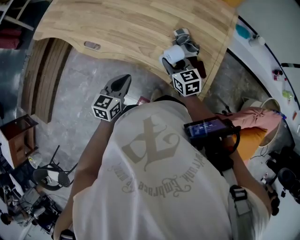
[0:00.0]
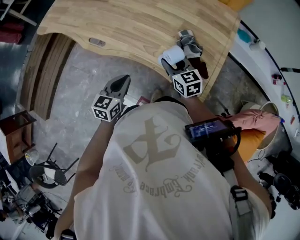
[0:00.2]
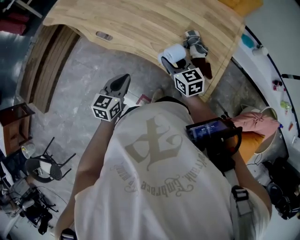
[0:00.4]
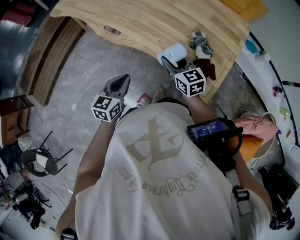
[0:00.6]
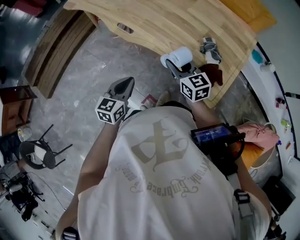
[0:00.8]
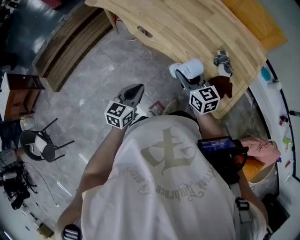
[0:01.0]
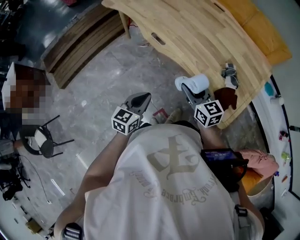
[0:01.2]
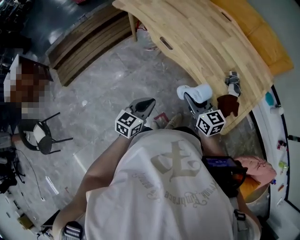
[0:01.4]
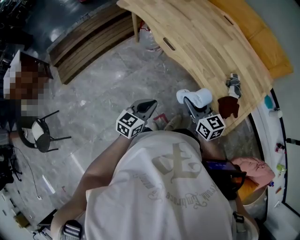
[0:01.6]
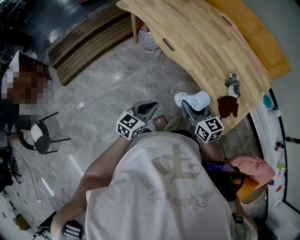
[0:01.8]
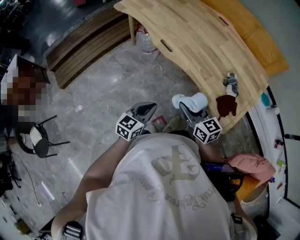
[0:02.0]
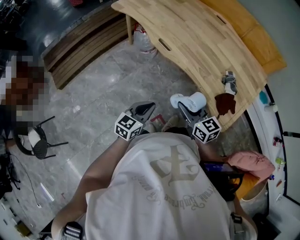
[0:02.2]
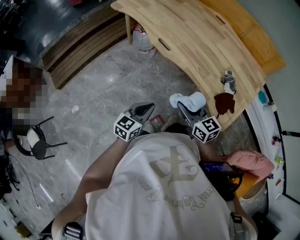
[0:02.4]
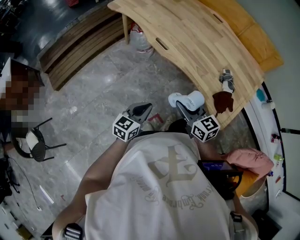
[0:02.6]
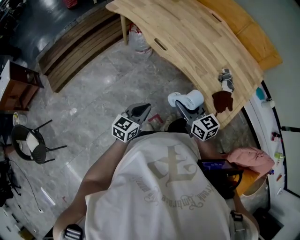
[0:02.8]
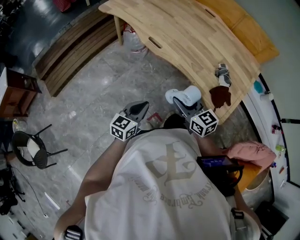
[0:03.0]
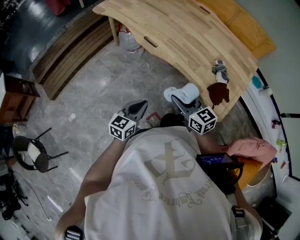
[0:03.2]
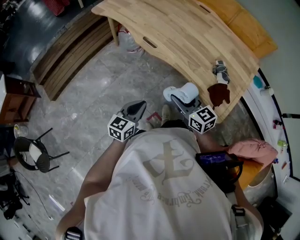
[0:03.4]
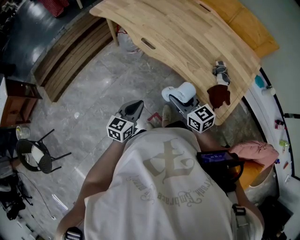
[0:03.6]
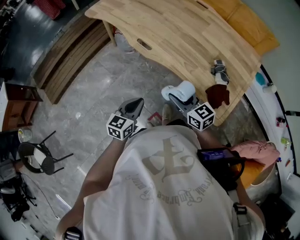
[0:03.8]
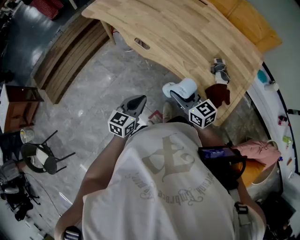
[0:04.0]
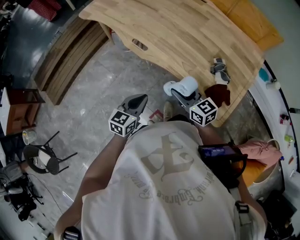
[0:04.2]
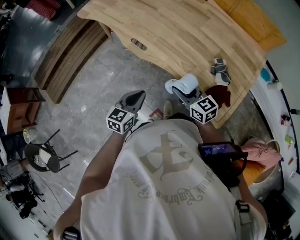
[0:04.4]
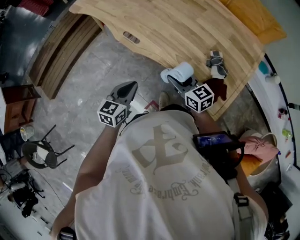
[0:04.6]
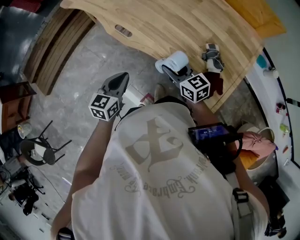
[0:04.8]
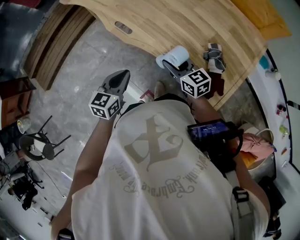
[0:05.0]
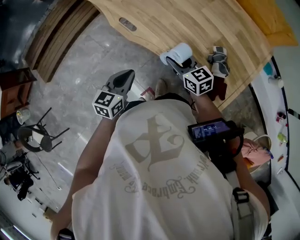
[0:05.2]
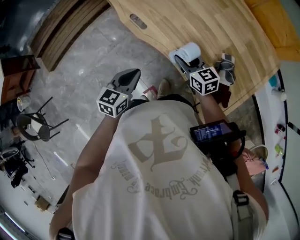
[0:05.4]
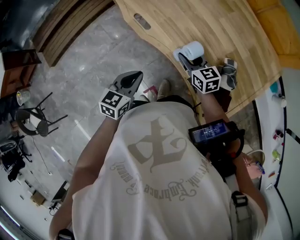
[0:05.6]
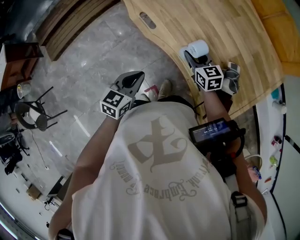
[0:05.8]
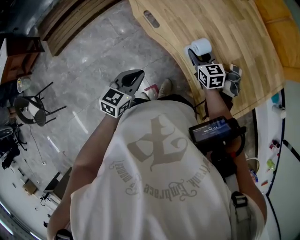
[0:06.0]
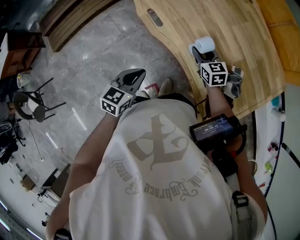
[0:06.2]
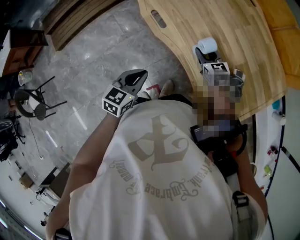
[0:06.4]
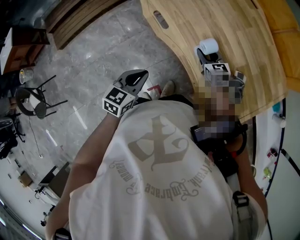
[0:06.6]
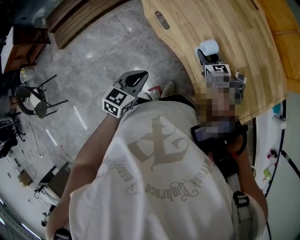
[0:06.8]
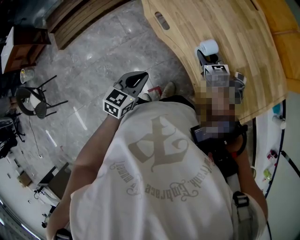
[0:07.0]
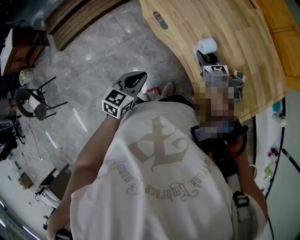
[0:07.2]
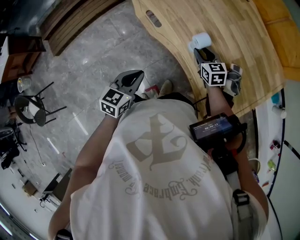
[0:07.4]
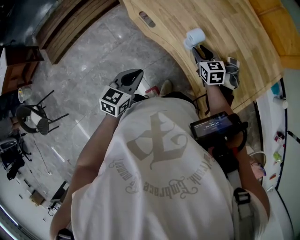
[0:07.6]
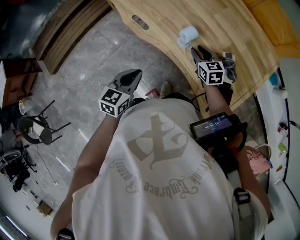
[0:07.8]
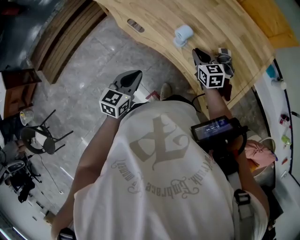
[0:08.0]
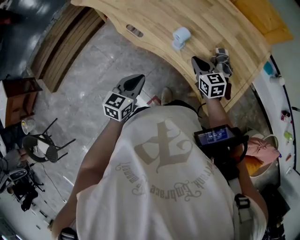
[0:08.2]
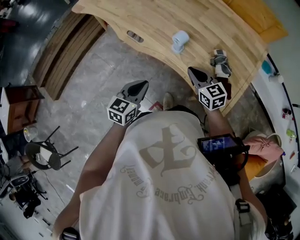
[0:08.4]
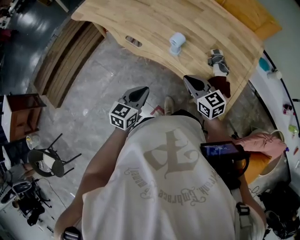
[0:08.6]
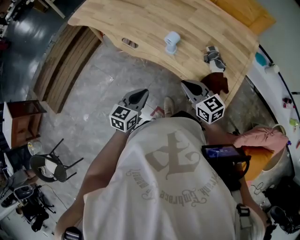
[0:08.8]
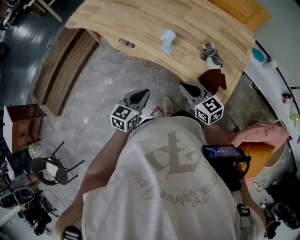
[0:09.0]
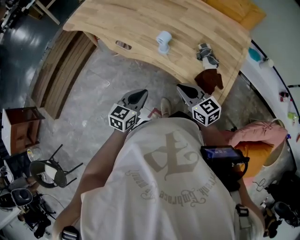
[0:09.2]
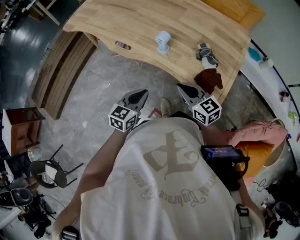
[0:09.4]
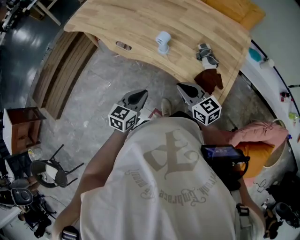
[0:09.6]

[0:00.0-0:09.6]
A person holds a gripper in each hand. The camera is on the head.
0:00.0 to 0:01.6: The right gripper goes roughly 30 cm to the left, backward and upward, and rotates about 30 degrees, while the left gripper moves to the left and backward, approximately 25 cm.
0:01.6 to 0:03.2: The grippers move only a little.
0:03.2 to 0:04.8: The right gripper travels forward, to the right and downward by some 20 cm. Meanwhile the left gripper moves forward and to the right, some 15 cm.
0:04.8 to 0:06.4: The right gripper travels forward and downward by about 15 cm.
0:06.4 to 0:08.0: The right gripper shifts about 10 cm backward and to the right, and closes its fingers.
0:08.0 to 0:09.6: The right gripper goes approximately 25 cm backward and upward. Meanwhile the left gripper is displaced backward and to the right by about 10 cm.

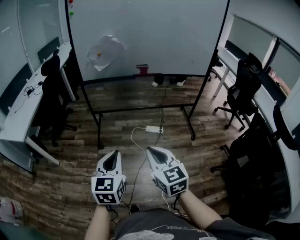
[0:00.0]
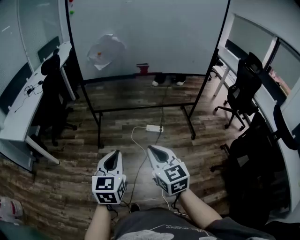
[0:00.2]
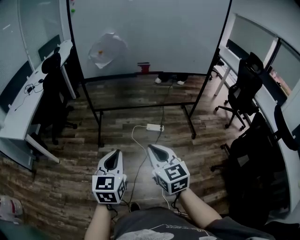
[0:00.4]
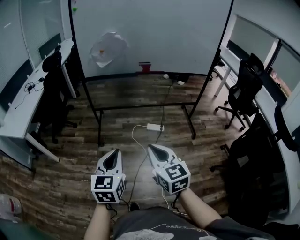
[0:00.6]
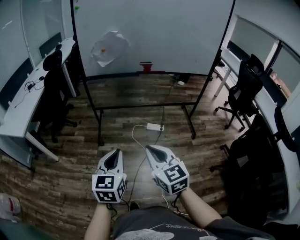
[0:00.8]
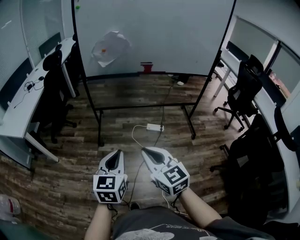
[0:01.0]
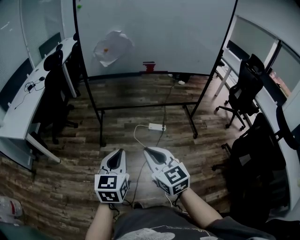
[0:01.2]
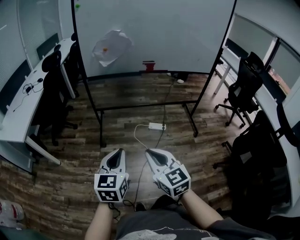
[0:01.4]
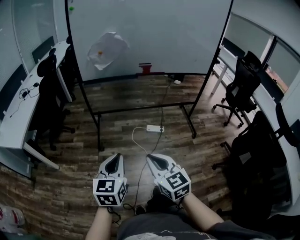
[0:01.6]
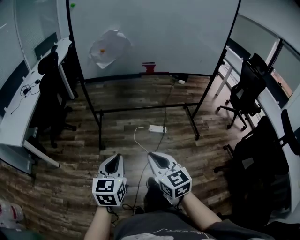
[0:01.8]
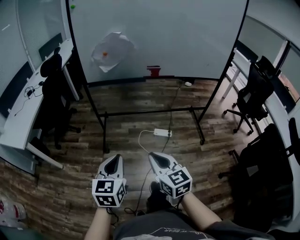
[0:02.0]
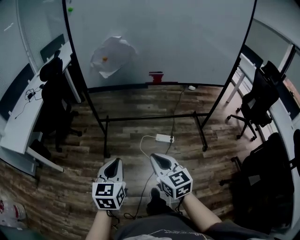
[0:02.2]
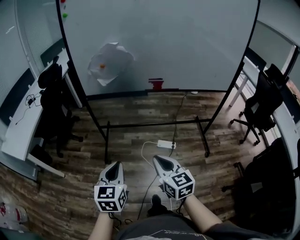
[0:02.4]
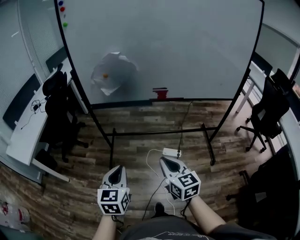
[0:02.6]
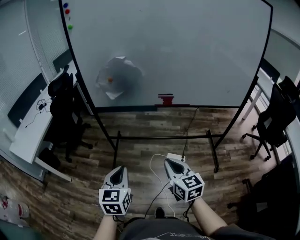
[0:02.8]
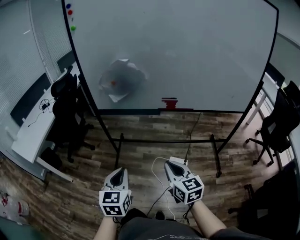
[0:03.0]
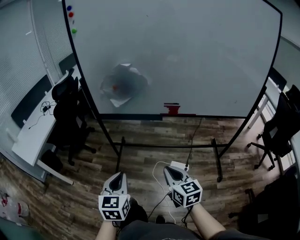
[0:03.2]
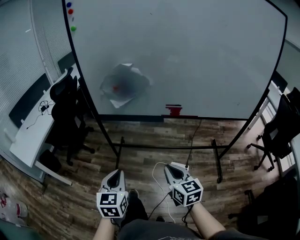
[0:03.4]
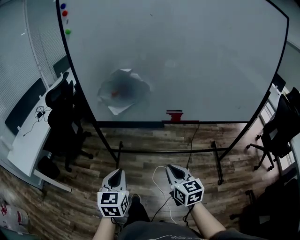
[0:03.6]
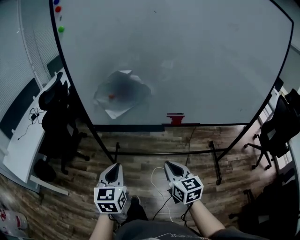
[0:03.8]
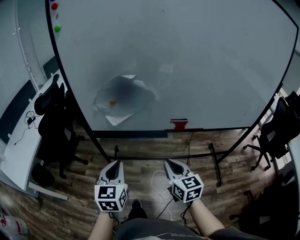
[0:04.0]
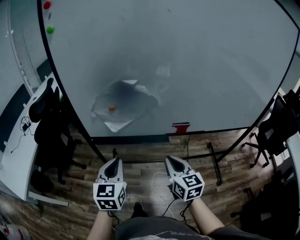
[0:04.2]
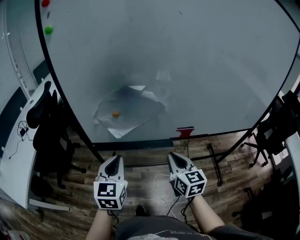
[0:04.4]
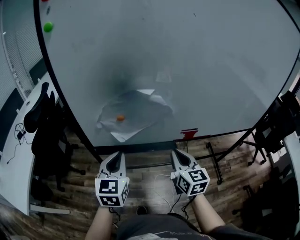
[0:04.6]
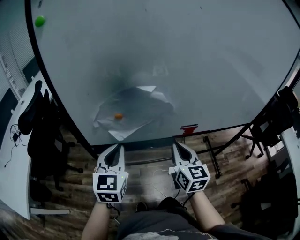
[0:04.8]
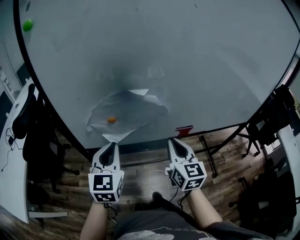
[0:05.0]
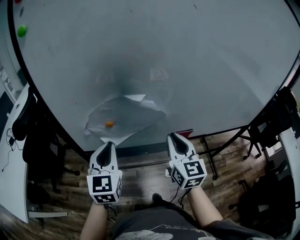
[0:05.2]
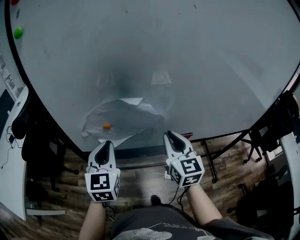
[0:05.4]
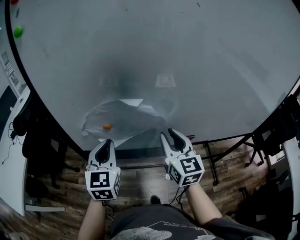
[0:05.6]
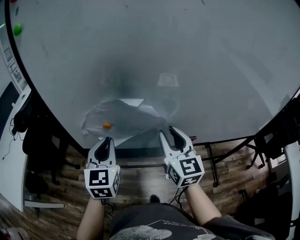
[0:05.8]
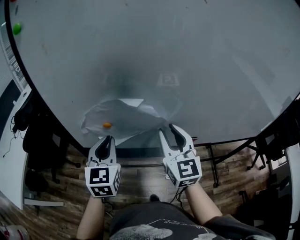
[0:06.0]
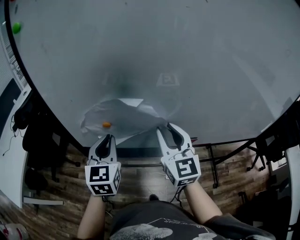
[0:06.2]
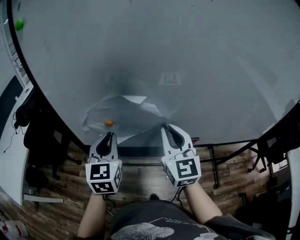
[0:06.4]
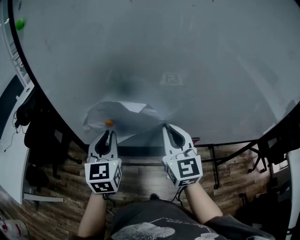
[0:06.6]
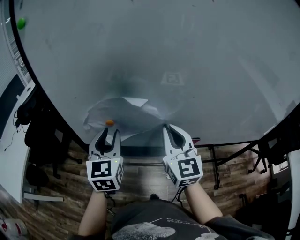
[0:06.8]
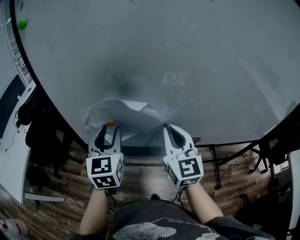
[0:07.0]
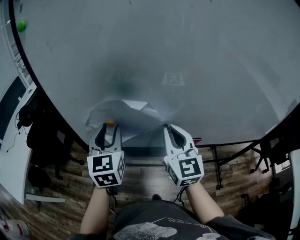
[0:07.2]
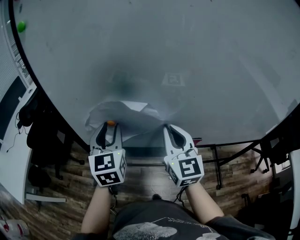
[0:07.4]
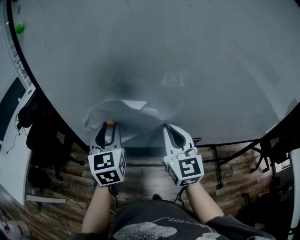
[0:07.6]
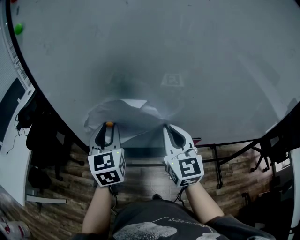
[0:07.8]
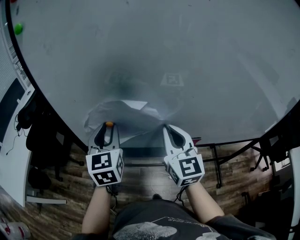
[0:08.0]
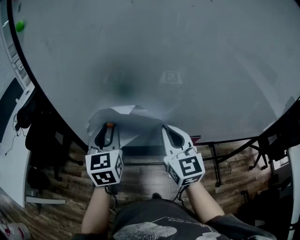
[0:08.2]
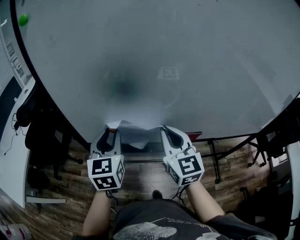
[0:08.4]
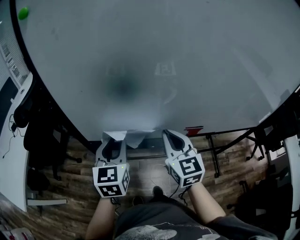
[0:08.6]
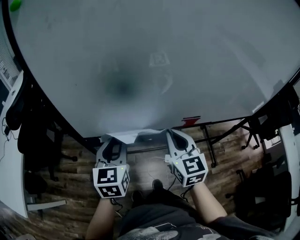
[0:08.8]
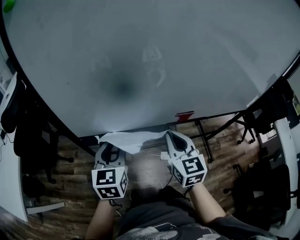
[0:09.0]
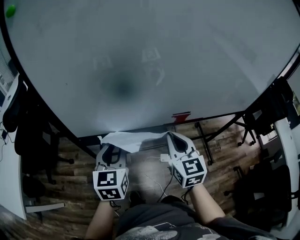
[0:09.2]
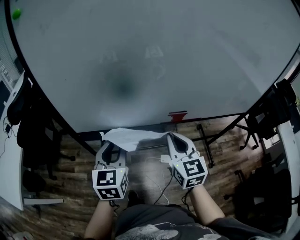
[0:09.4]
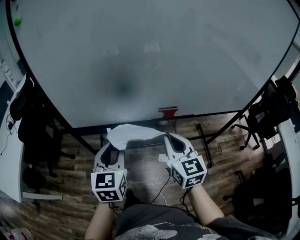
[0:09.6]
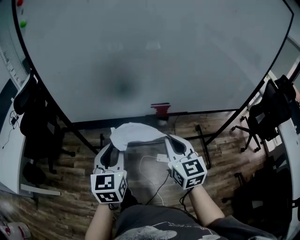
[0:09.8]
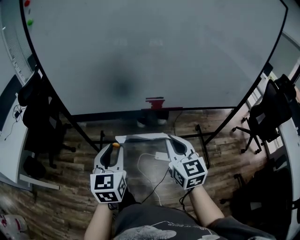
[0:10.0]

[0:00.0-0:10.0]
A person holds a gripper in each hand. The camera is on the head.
0:00.0 to 0:01.4: The left gripper is displaced to the left by approximately 5 cm, while the right gripper moves to the left, about 10 cm.
0:01.4 to 0:02.8: The right gripper heads forward and to the right, covering approximately 30 cm. The left gripper travels forward by approximately 25 cm.
0:02.8 to 0:04.2: The two grippers go approximately 30 cm forward.
0:04.2 to 0:05.8: The right gripper travels forward and upward by approximately 20 cm, and opens, while the left gripper shifts some 15 cm forward.
0:05.8 to 0:07.2: The left gripper opens its fingers. The right gripper closes its fingers.
0:07.2 to 0:08.6: The two grippers go some 5 cm downward.
0:08.6 to 0:10.0: Both grippers move backward and to the right, about 30 cm.

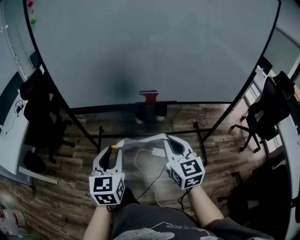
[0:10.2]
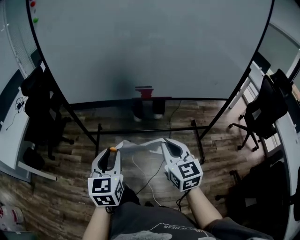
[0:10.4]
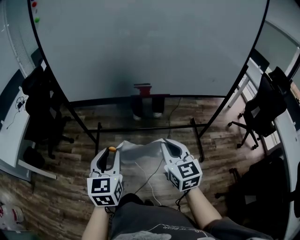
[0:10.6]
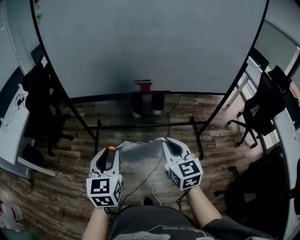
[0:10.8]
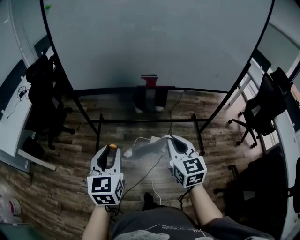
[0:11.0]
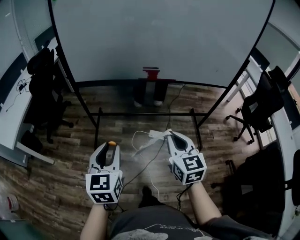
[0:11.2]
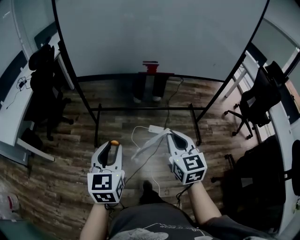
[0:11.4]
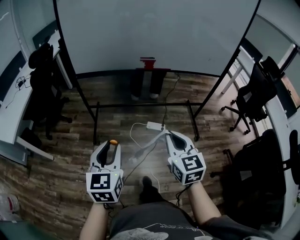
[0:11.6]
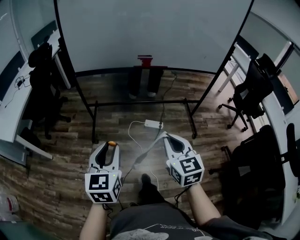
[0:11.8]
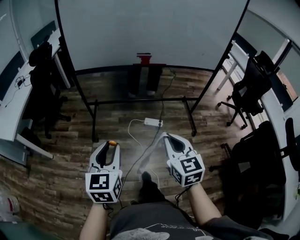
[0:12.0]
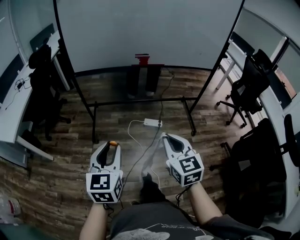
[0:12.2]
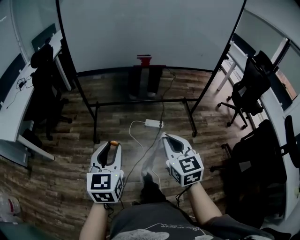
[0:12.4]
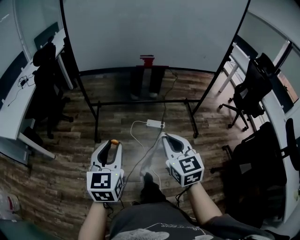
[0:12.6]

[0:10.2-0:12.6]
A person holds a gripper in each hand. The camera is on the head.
0:10.2 to 0:11.4: The two grippers go roughly 20 cm backward.
0:11.4 to 0:12.6: The grippers both shift backward by approximately 10 cm.

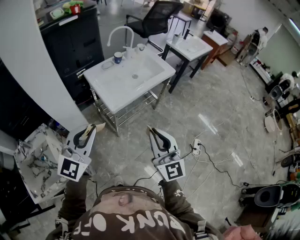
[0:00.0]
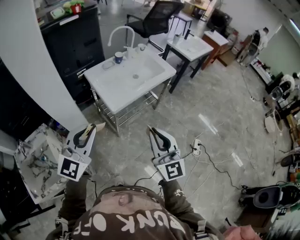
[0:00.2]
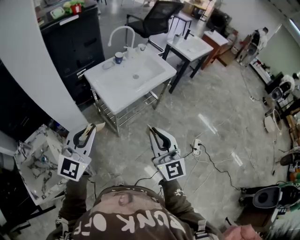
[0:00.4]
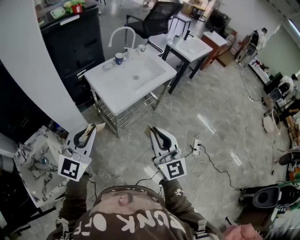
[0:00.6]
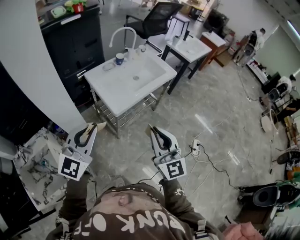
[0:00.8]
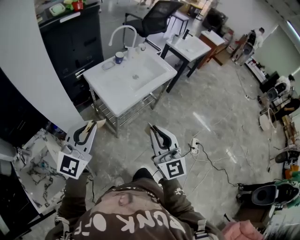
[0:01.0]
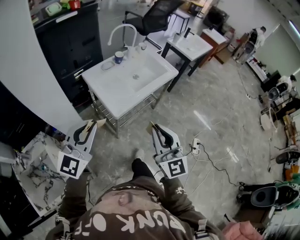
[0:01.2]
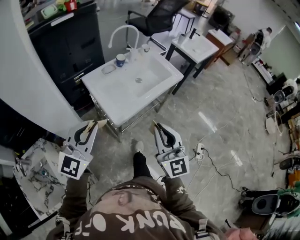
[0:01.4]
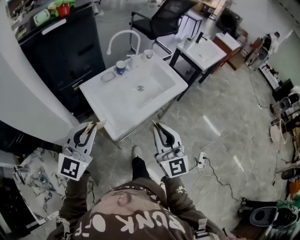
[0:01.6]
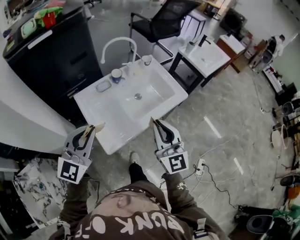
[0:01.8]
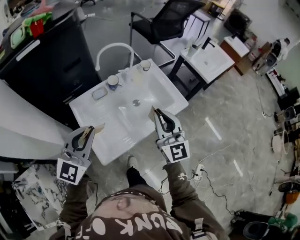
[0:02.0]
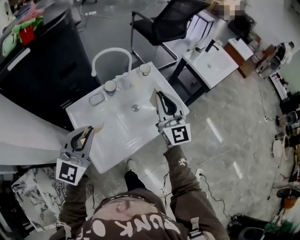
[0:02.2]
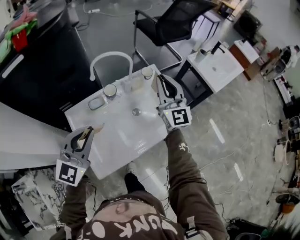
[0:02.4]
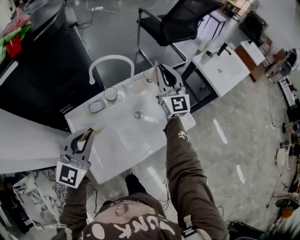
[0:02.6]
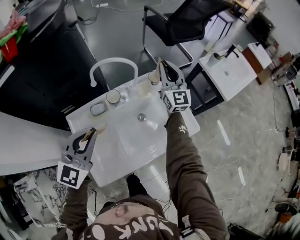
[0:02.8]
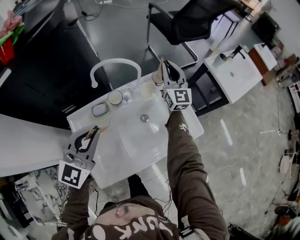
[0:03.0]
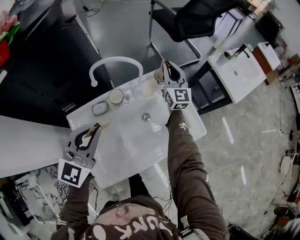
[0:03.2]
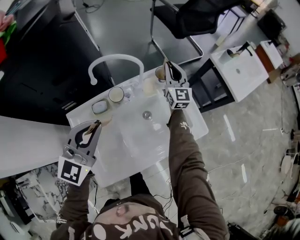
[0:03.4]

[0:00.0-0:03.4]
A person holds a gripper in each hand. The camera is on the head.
0:00.0 to 0:01.6: The two grippers go some 25 cm forward.
0:01.6 to 0:03.4: The right gripper moves forward, roughly 70 cm. The left gripper moves forward, approximately 35 cm.
